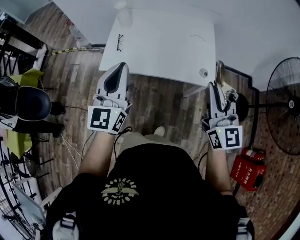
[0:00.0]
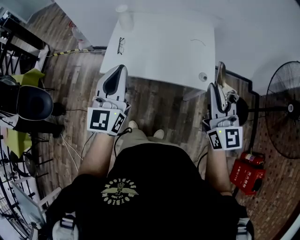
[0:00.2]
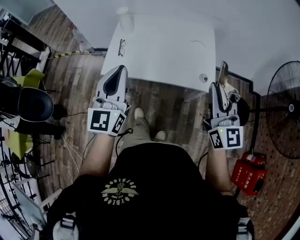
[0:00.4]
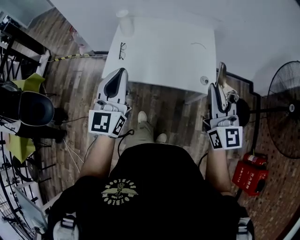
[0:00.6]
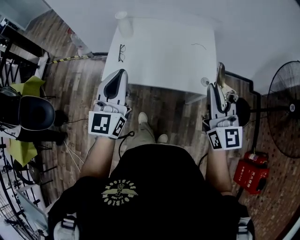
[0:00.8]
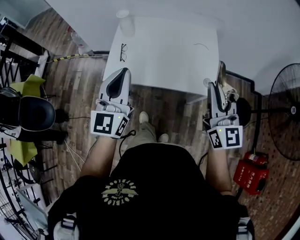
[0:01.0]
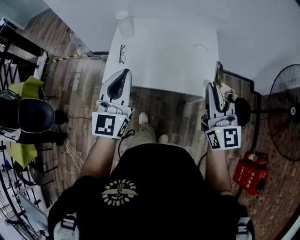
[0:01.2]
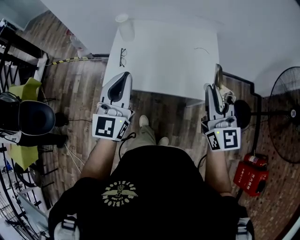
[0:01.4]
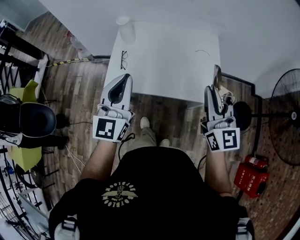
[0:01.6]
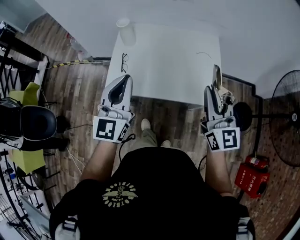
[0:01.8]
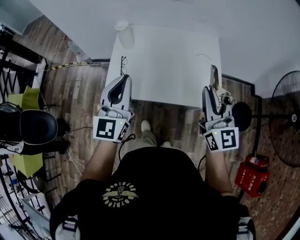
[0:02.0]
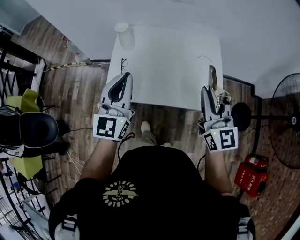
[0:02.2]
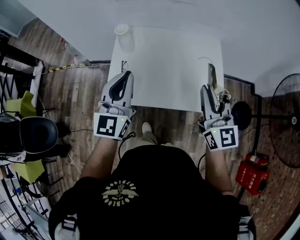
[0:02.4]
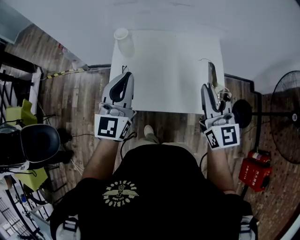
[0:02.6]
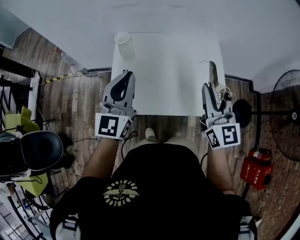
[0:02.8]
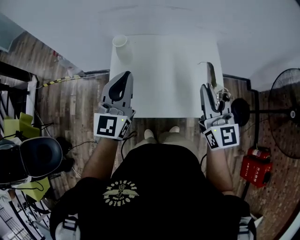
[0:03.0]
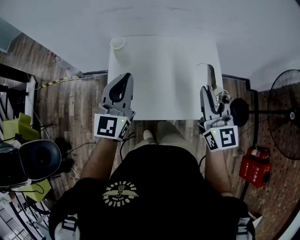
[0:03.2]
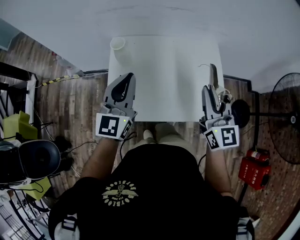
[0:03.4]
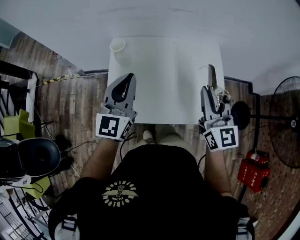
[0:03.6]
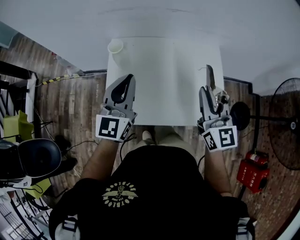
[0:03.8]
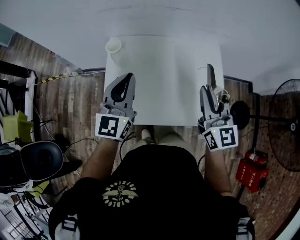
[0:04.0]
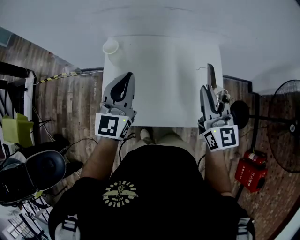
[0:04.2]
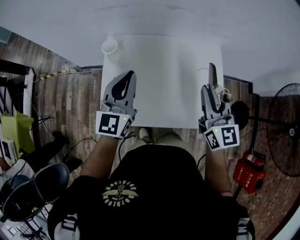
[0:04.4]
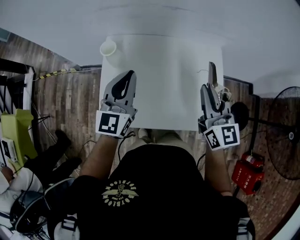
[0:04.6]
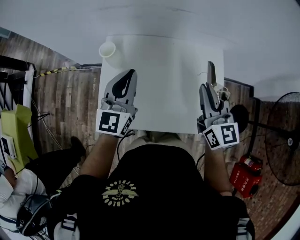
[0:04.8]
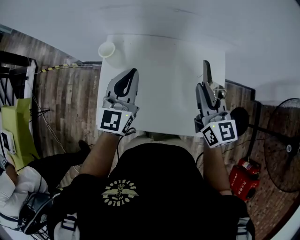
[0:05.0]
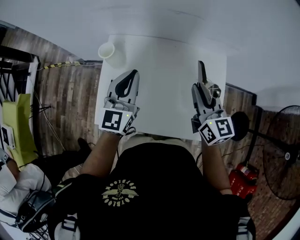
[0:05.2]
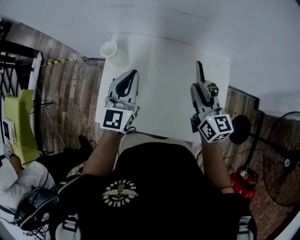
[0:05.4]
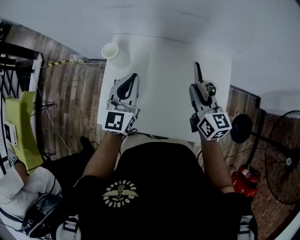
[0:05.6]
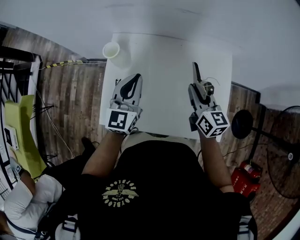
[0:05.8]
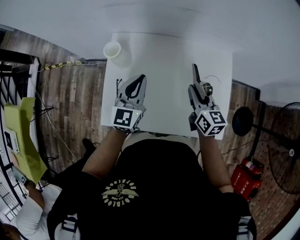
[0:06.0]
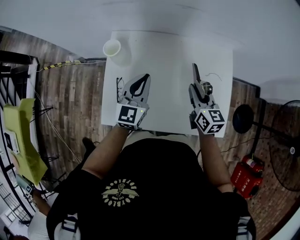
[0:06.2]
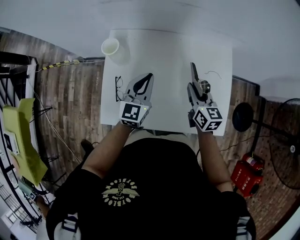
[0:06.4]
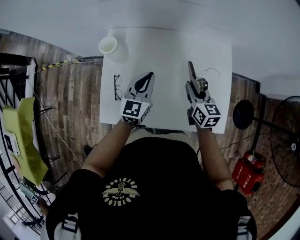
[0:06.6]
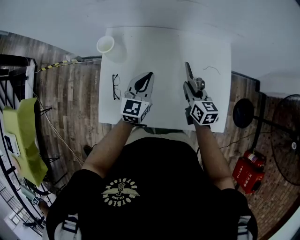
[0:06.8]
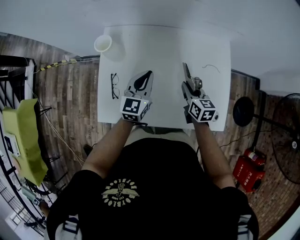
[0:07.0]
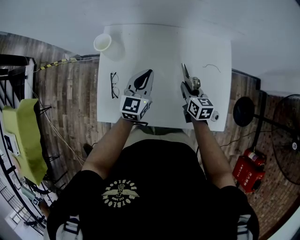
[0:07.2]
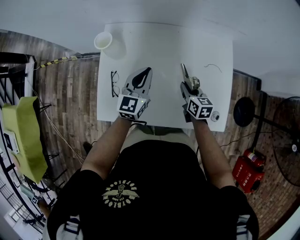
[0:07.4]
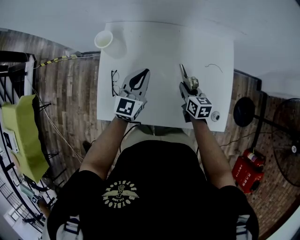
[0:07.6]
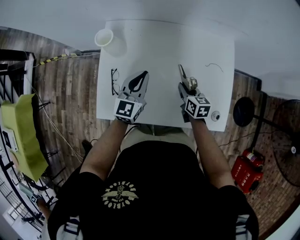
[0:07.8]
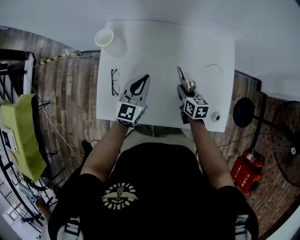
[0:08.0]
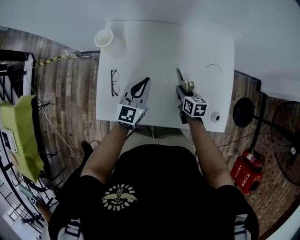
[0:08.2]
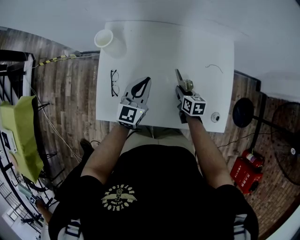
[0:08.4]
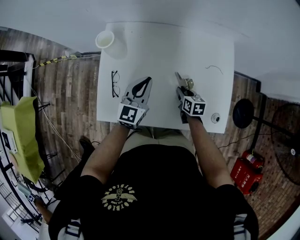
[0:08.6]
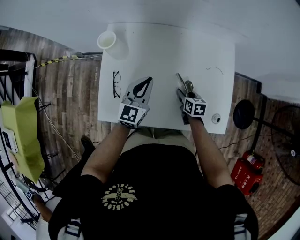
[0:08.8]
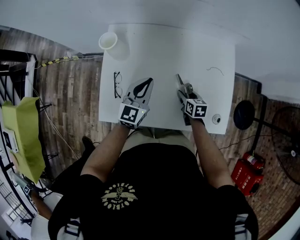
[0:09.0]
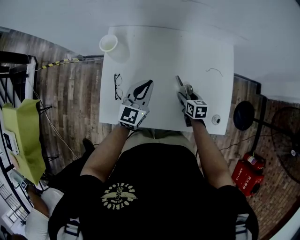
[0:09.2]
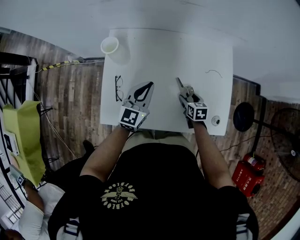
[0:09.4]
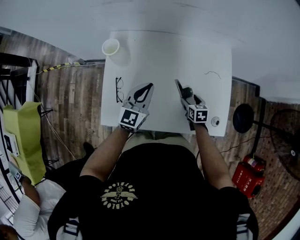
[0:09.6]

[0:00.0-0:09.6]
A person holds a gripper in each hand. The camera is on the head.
0:00.0 to 0:01.6: The two grippers go approximately 10 cm forward.
0:01.6 to 0:03.2: The left gripper is displaced forward by some 20 cm; the right gripper heads forward and to the left, covering roughly 20 cm.
0:03.2 to 0:04.8: The right gripper goes about 15 cm forward. Meanwhile the left gripper shifts about 15 cm forward and to the right.
0:04.8 to 0:06.4: The grippers both shift downward by some 15 cm. The right gripper swivels some 20 degrees.
0:06.4 to 0:08.0: The left gripper travels downward by approximately 5 cm; the right gripper goes about 15 cm downward.
0:08.0 to 0:09.6: The right gripper moves approximately 5 cm, and opens.

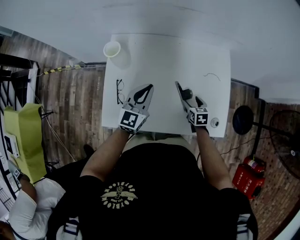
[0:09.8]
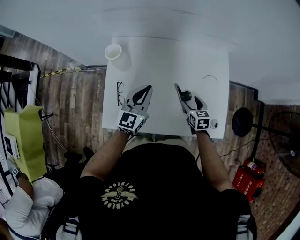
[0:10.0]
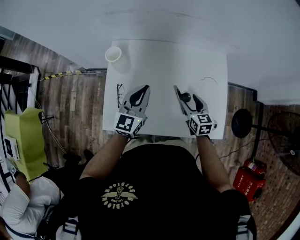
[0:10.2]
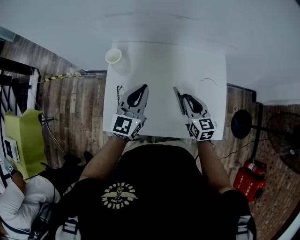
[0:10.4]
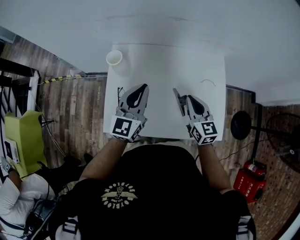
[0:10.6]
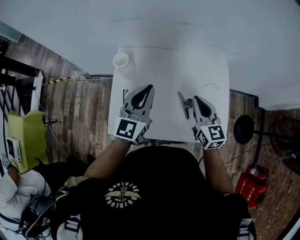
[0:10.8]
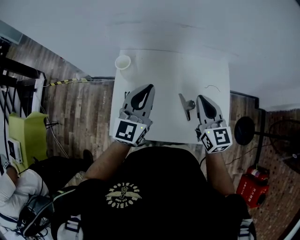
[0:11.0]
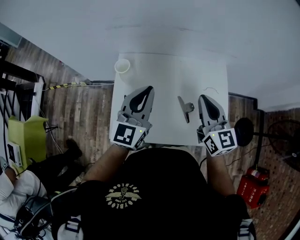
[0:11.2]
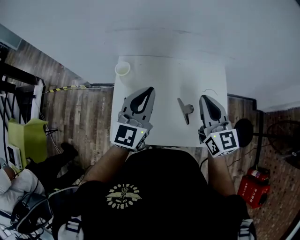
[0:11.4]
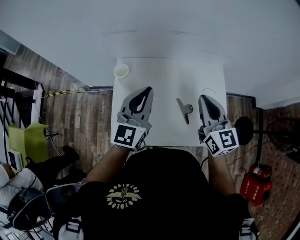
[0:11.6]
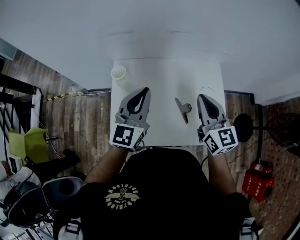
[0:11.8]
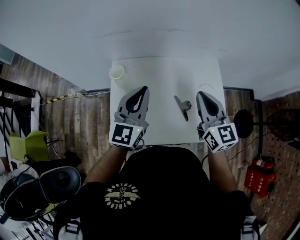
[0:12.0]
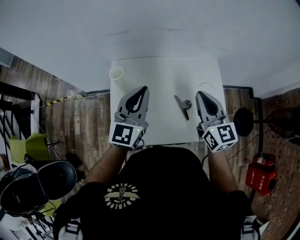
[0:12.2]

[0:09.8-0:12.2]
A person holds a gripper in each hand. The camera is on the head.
0:09.8 to 0:11.0: The left gripper shifts roughly 15 cm upward. The right gripper shifts some 30 cm upward, tips its fingers upward by roughly 40 degrees, and closes its fingers.
0:11.0 to 0:12.2: The right gripper goes roughly 5 cm upward.

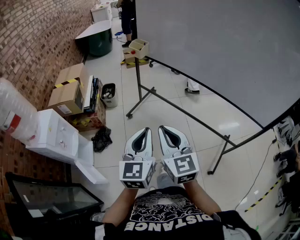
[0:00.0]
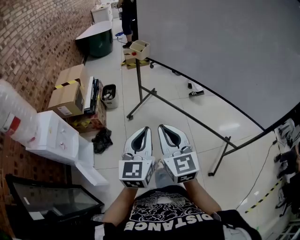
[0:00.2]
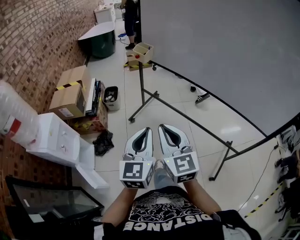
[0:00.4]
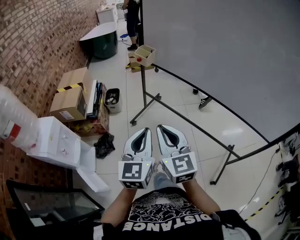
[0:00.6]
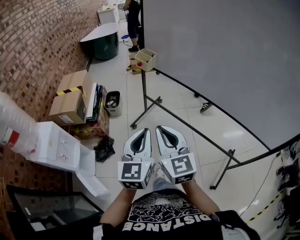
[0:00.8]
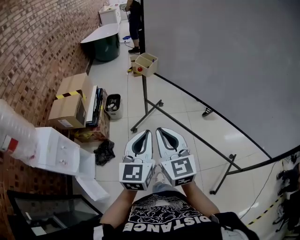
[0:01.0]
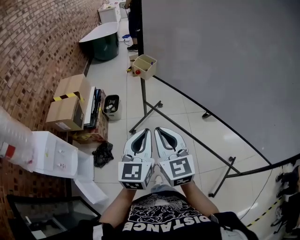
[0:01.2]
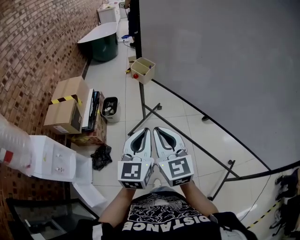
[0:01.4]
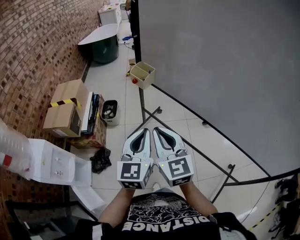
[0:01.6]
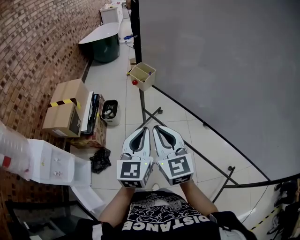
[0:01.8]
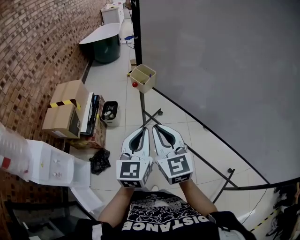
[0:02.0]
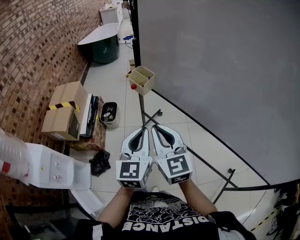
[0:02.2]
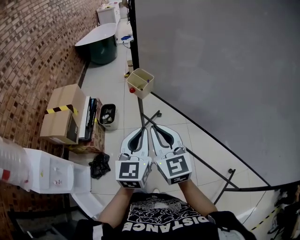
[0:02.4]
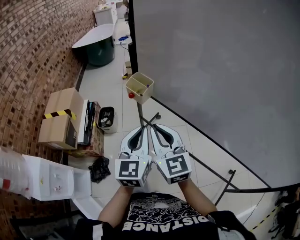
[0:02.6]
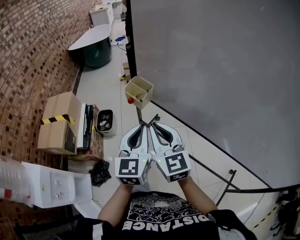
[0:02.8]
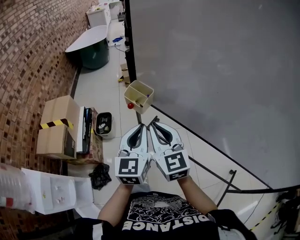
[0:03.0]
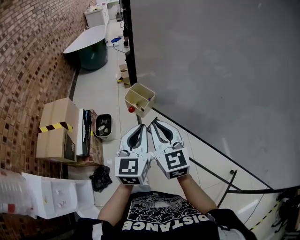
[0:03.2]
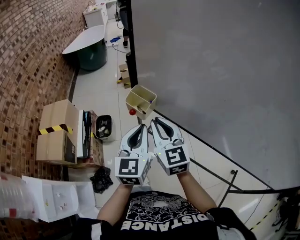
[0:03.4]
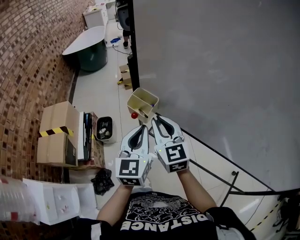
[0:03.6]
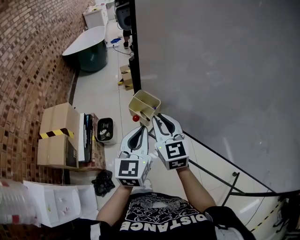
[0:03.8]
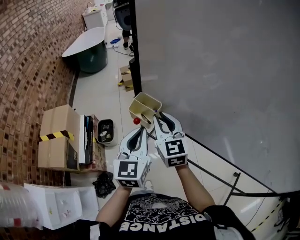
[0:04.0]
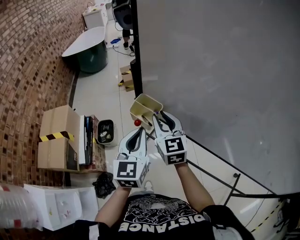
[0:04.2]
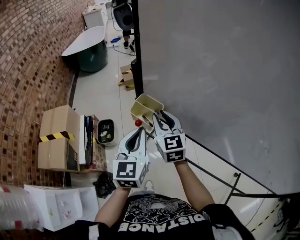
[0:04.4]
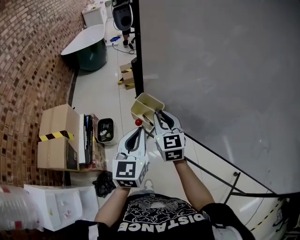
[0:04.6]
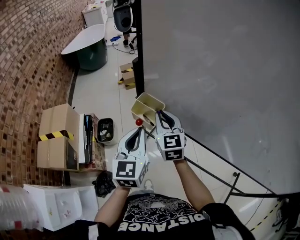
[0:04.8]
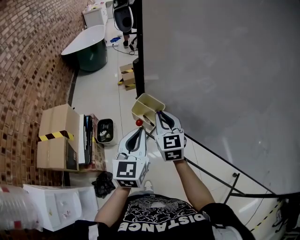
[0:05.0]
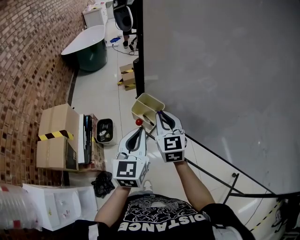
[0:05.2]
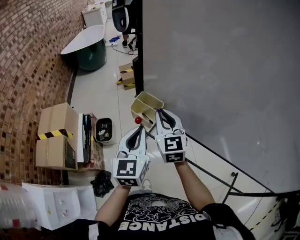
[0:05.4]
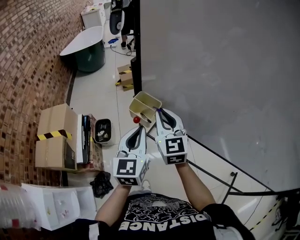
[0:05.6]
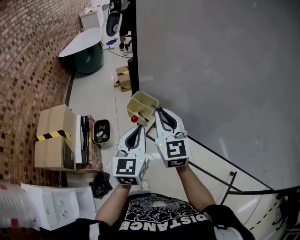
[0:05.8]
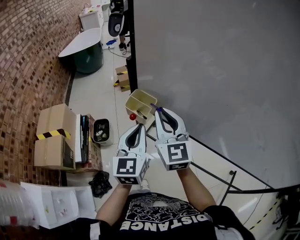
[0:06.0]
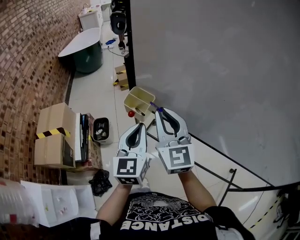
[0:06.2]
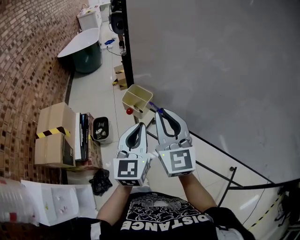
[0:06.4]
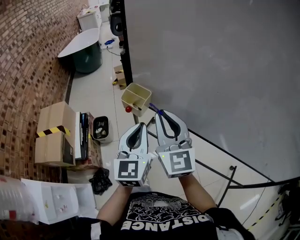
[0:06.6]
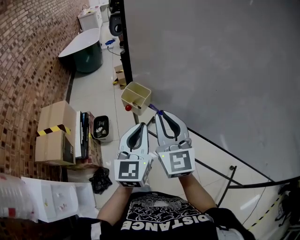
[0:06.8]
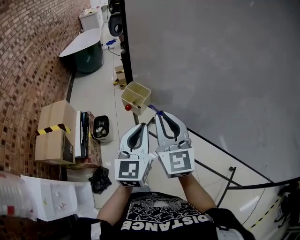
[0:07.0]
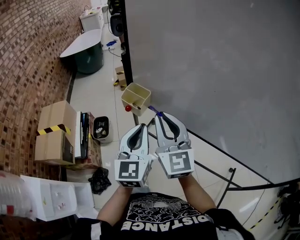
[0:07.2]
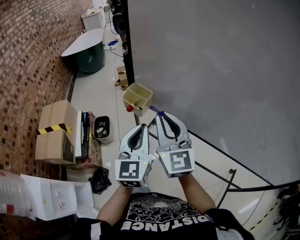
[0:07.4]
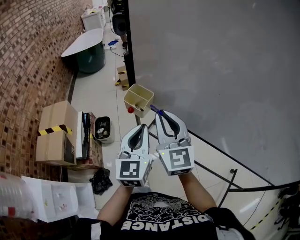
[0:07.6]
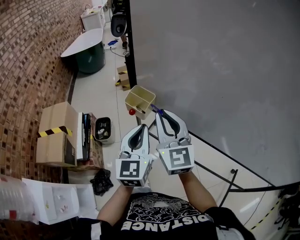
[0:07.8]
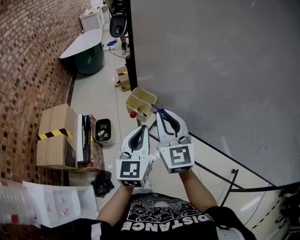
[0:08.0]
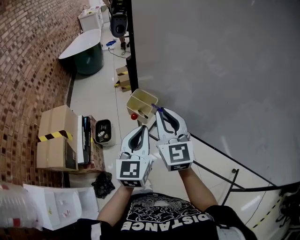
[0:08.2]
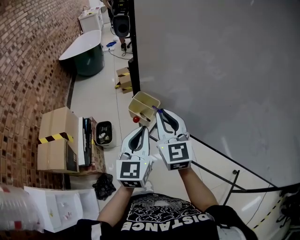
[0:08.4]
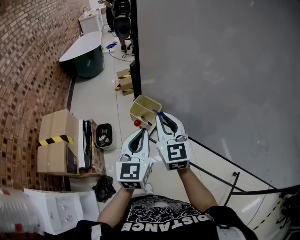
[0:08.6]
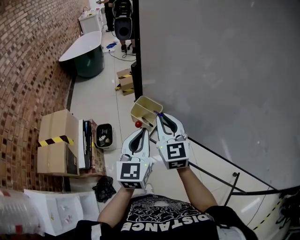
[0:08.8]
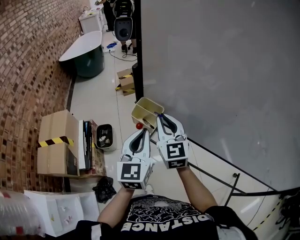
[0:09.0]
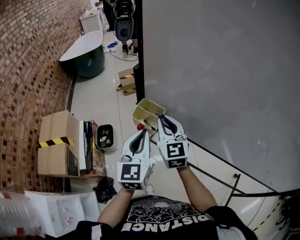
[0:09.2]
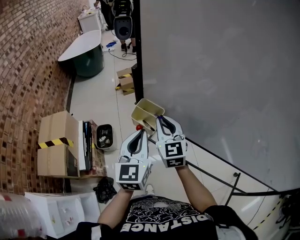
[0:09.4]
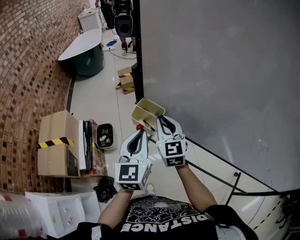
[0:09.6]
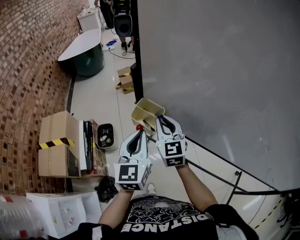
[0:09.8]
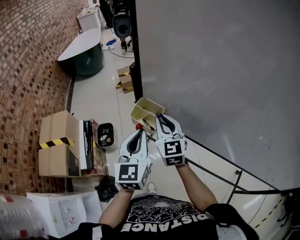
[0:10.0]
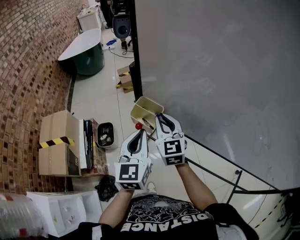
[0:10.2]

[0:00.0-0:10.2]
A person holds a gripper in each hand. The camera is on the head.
0:00.0 to 0:01.4: The grippers both shift forward by roughly 25 cm.
0:01.4 to 0:03.0: The grippers both shift forward by roughly 25 cm.
0:03.0 to 0:04.4: The right gripper moves forward, roughly 15 cm. The left gripper goes approximately 10 cm forward.
0:04.4 to 0:05.8: The right gripper moves upward, roughly 5 cm.
0:05.8 to 0:07.2: The two grippers go approximately 10 cm backward.
0:07.2 to 0:08.8: The left gripper travels forward by roughly 10 cm. The right gripper moves forward and downward, approximately 15 cm.
0:08.8 to 0:10.2: The right gripper ends up about 5 cm from where it was.

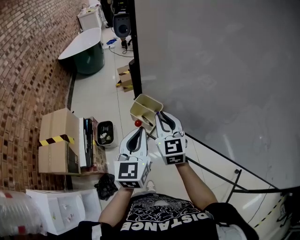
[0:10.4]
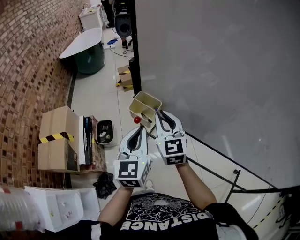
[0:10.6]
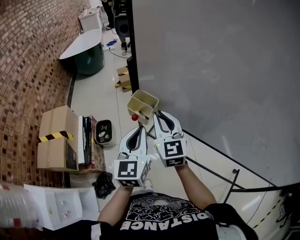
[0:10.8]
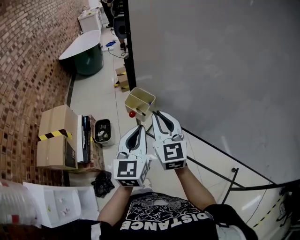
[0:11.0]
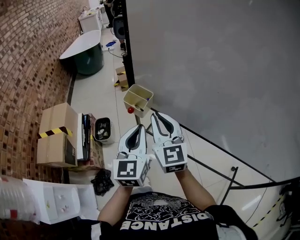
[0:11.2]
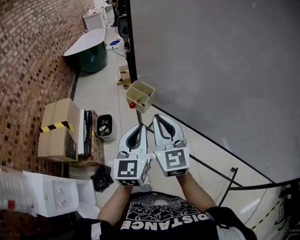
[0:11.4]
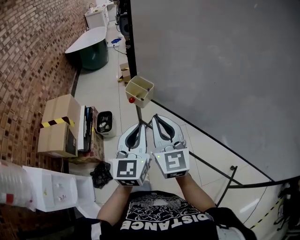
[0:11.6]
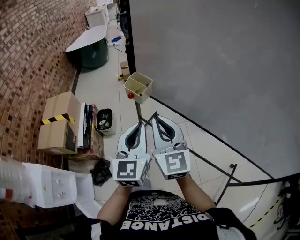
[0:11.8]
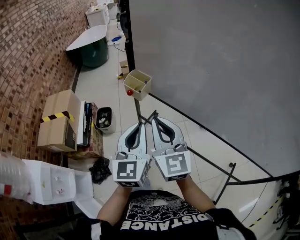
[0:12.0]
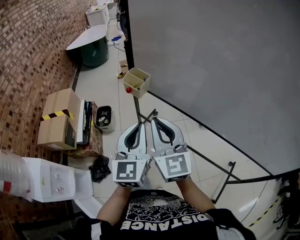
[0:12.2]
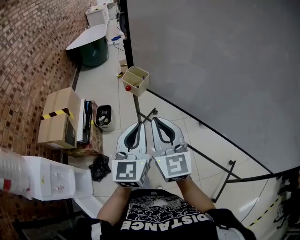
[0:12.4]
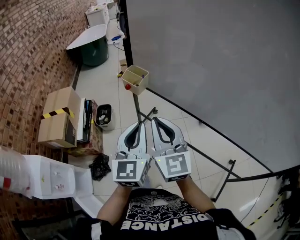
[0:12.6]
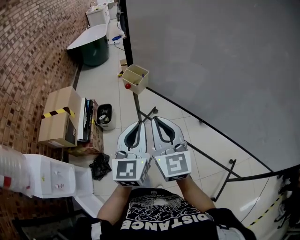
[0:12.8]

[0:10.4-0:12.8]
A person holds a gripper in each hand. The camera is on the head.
0:10.4 to 0:11.6: The right gripper goes approximately 20 cm backward and upward. Meanwhile the left gripper shifts roughly 15 cm backward.
0:11.6 to 0:12.8: The two grippers go some 10 cm backward.
